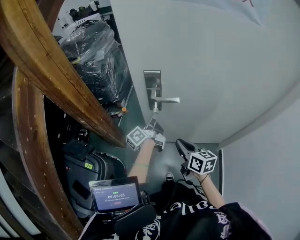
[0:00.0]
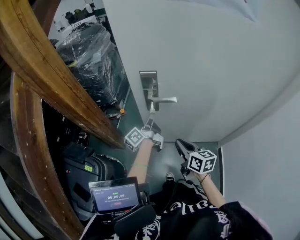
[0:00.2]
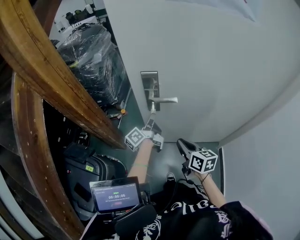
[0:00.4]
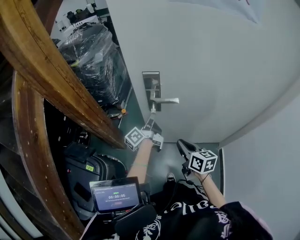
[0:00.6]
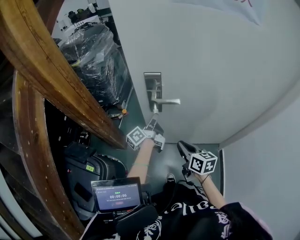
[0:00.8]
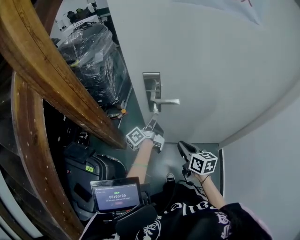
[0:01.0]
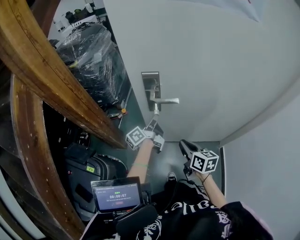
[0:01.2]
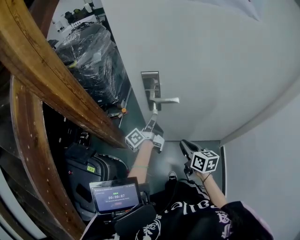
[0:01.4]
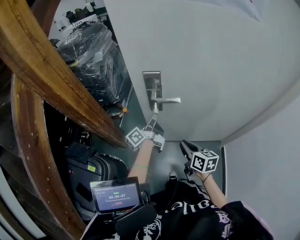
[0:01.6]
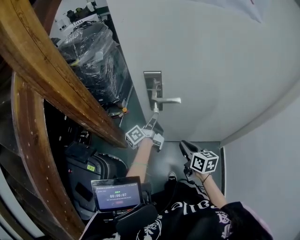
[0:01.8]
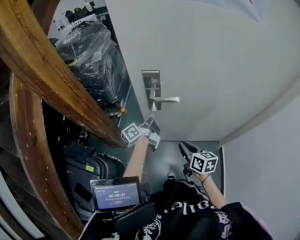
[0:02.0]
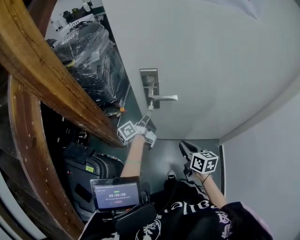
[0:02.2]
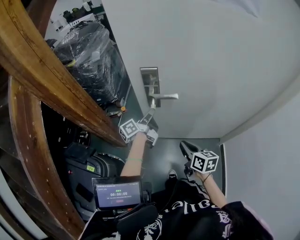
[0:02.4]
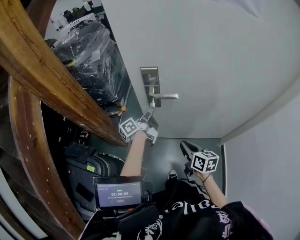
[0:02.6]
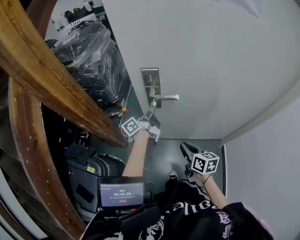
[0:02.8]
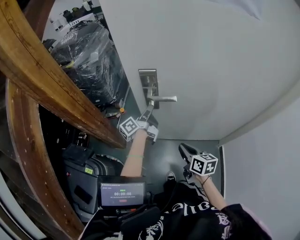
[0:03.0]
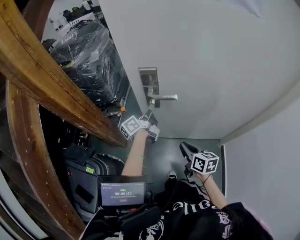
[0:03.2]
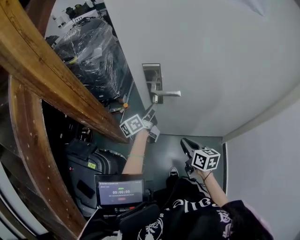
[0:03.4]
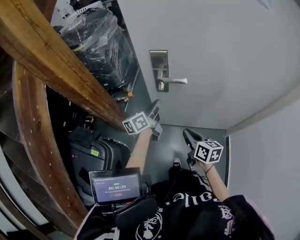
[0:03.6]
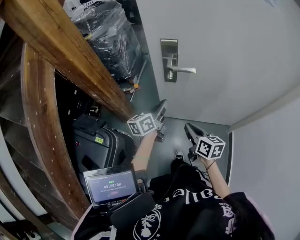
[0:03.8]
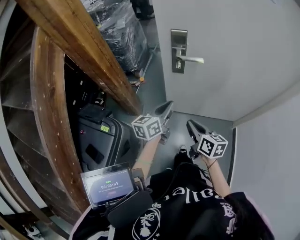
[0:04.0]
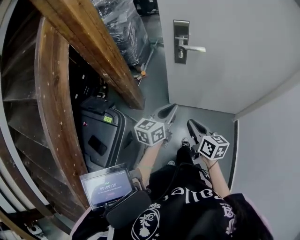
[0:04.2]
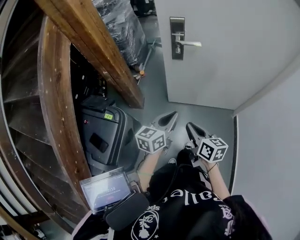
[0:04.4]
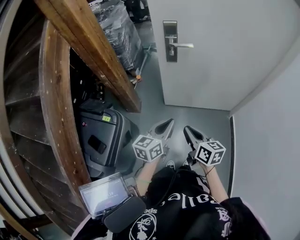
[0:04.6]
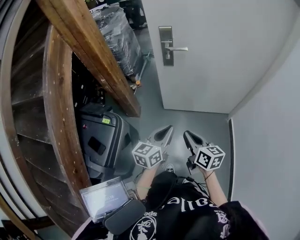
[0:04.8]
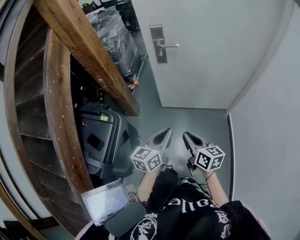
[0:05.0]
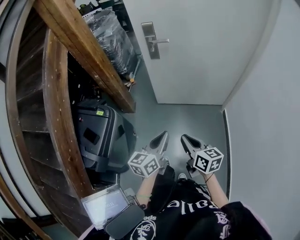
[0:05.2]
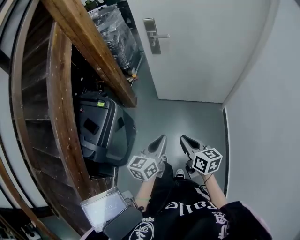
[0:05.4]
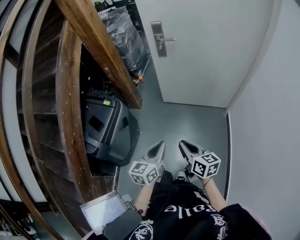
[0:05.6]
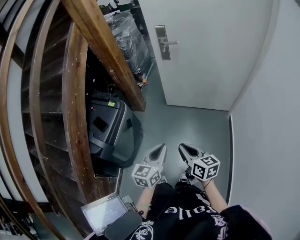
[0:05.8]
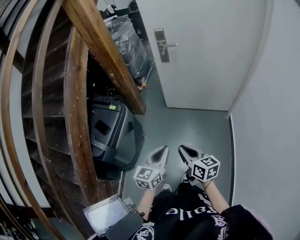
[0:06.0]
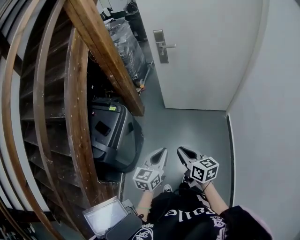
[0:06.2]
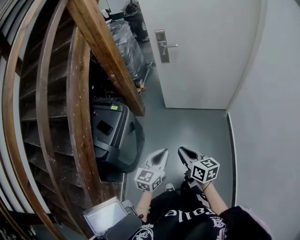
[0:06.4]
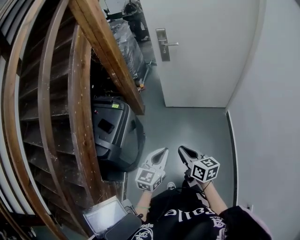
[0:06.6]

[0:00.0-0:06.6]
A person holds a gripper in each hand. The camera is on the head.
0:00.0 to 0:01.6: The grippers make only small movements.
0:01.6 to 0:03.2: The left gripper shifts approximately 5 cm forward.
0:03.2 to 0:05.0: The right gripper goes about 35 cm backward, while the left gripper goes roughly 50 cm backward, and rotates around the line of its fingers by roughly 40 degrees, clockwise from behind.
0:05.0 to 0:06.6: The two grippers go some 25 cm backward. The left gripper turns by approximately 20 degrees.

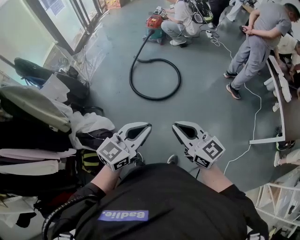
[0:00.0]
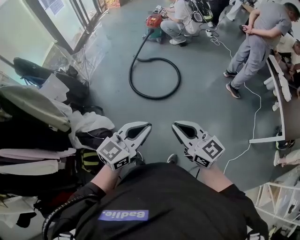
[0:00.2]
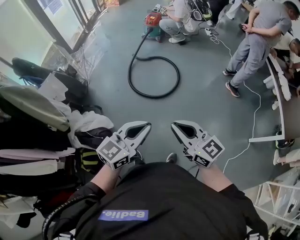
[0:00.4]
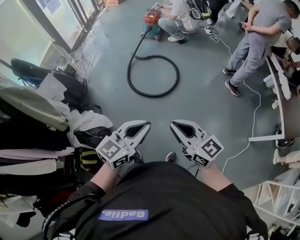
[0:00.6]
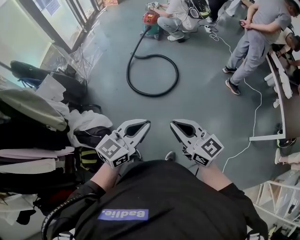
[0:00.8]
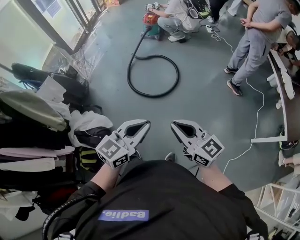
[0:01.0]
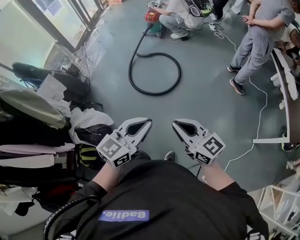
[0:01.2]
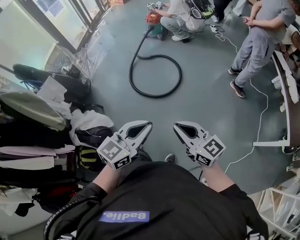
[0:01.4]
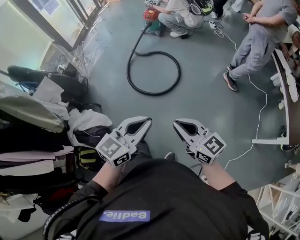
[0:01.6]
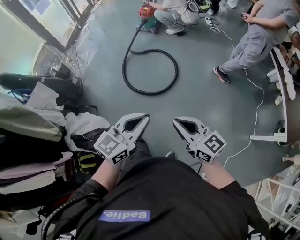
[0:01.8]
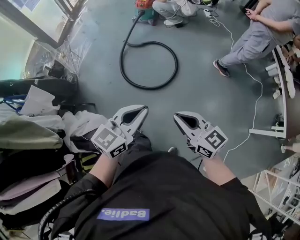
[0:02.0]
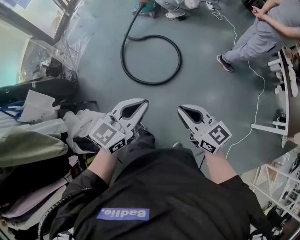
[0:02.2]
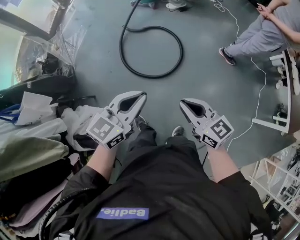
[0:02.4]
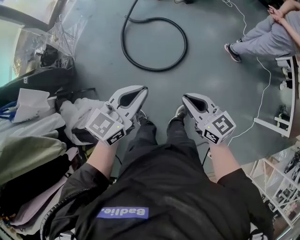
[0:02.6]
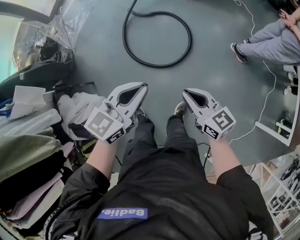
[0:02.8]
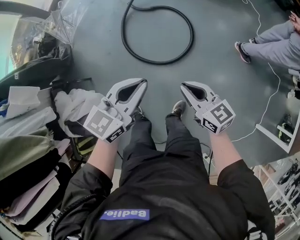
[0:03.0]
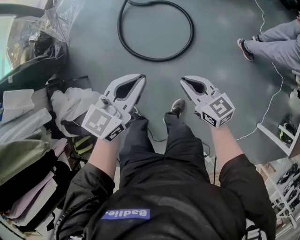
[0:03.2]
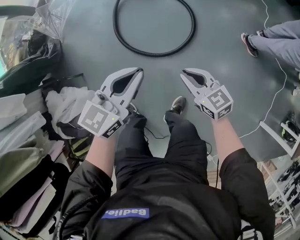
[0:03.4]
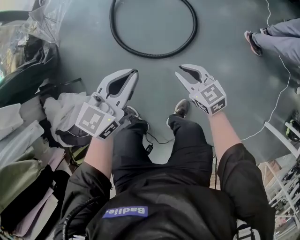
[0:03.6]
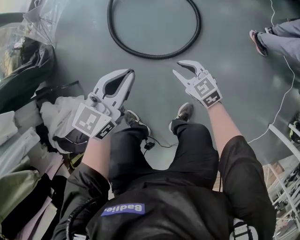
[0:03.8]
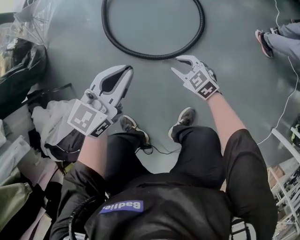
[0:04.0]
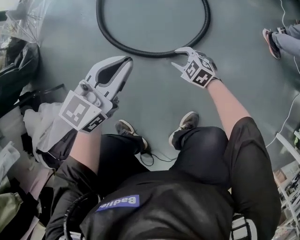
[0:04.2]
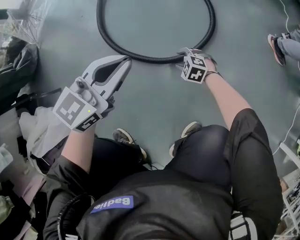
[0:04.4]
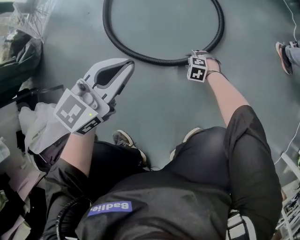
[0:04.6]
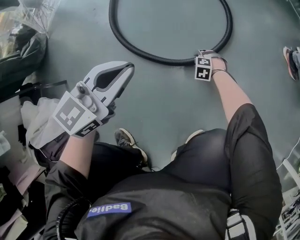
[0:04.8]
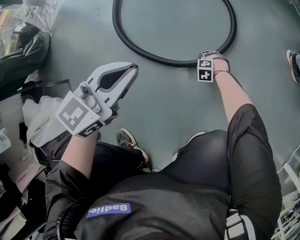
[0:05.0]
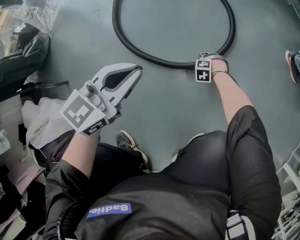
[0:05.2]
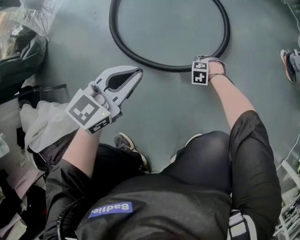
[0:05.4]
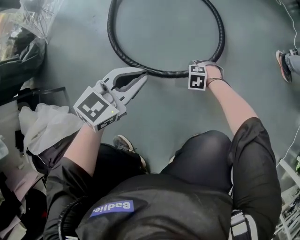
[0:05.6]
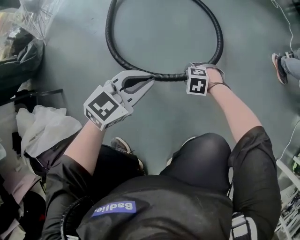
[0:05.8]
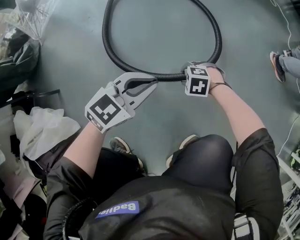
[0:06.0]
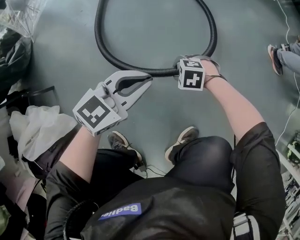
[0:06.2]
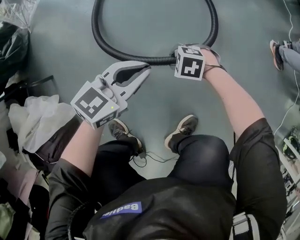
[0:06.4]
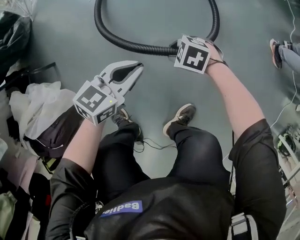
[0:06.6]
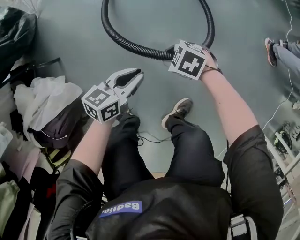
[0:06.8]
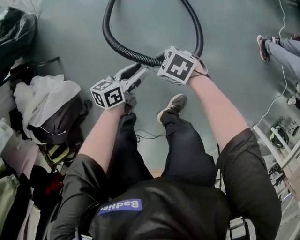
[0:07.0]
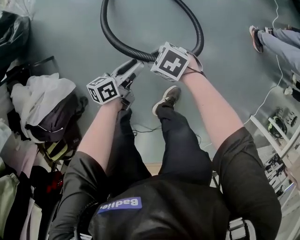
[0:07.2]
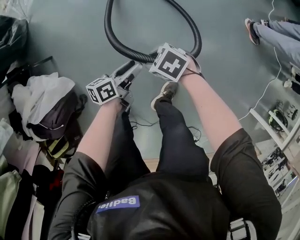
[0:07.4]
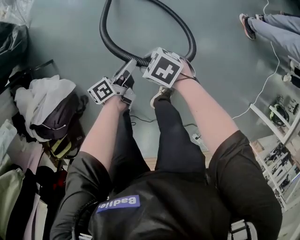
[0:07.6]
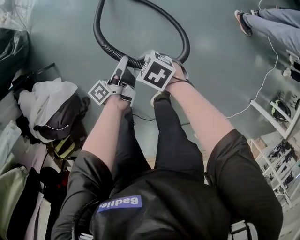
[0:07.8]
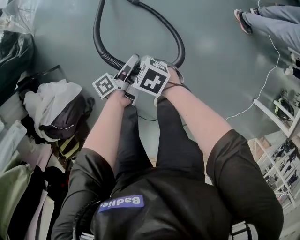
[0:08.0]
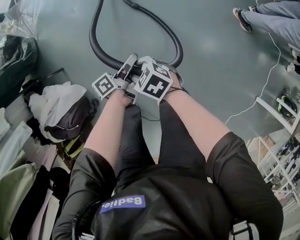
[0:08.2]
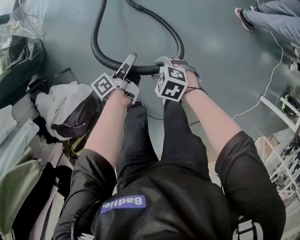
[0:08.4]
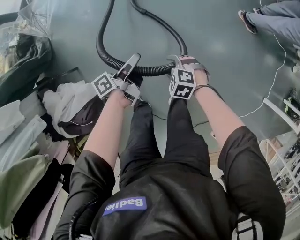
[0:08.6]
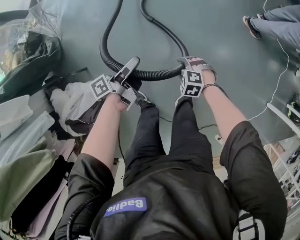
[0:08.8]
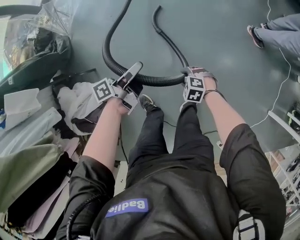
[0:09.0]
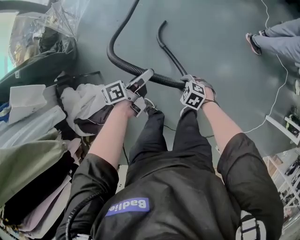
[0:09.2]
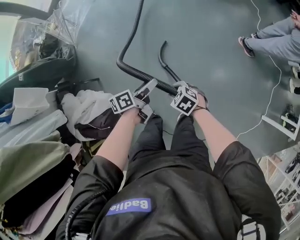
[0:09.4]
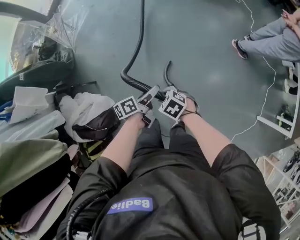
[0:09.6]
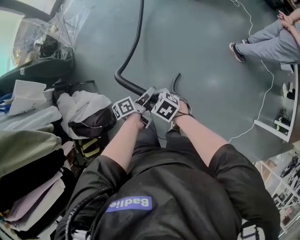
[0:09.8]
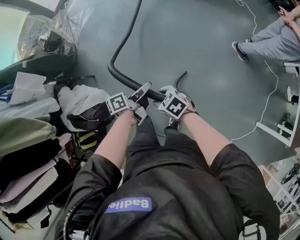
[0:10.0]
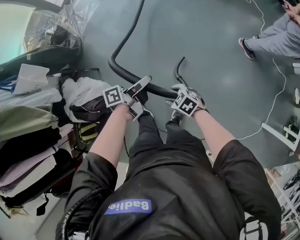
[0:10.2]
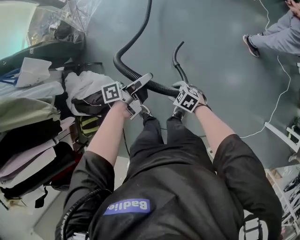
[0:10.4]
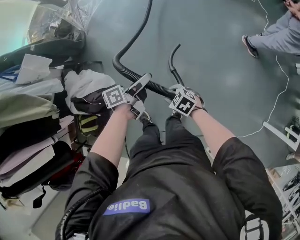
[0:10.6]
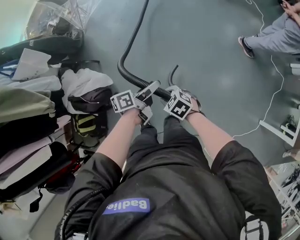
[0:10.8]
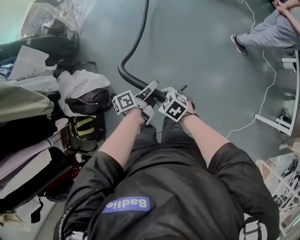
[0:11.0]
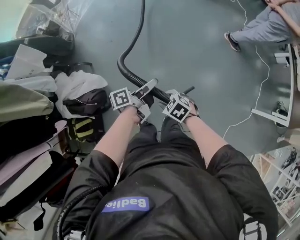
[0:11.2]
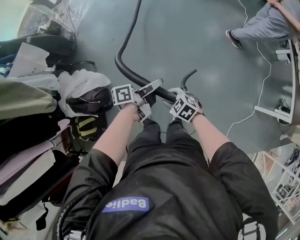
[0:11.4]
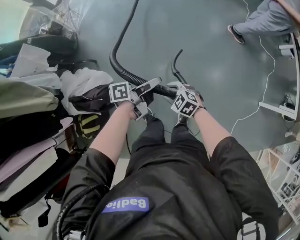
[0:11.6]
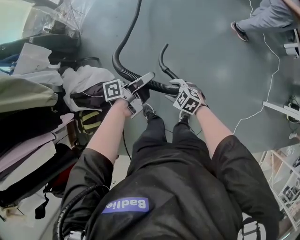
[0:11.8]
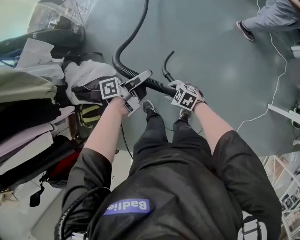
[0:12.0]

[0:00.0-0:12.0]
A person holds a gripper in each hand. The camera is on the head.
0:00.0 to 0:01.6: Both grippers travel together to the right and forward, roughly 10 cm.
0:01.6 to 0:03.0: The two grippers go approximately 40 cm forward and downward.
0:03.0 to 0:04.4: The left gripper moves downward, about 50 cm. Meanwhile the right gripper heads downward, covering some 70 cm, points its fingers roughly 40 degrees further downward, and opens.
0:04.4 to 0:06.0: The left gripper travels downward by roughly 10 cm; the right gripper moves some 15 cm downward and comes back.
0:06.0 to 0:07.6: The left gripper moves approximately 10 cm, twists some 90 degrees counterclockwise, seen from behind, and opens its fingers. Meanwhile the right gripper shifts approximately 30 cm upward, and turns by roughly 40 degrees.
0:07.6 to 0:09.0: The right gripper shifts approximately 5 cm upward, and changes its angle by approximately 30 degrees, while the left gripper heads upward, covering about 25 cm.
0:09.0 to 0:10.4: The left gripper shifts by approximately 25 cm, and opens, then closes again, while the right gripper moves roughly 20 cm, and changes its angle by approximately 30 degrees.
0:10.4 to 0:12.0: The left gripper ends up approximately 15 cm from where it was, and opens, then closes once more. Meanwhile the right gripper changes place by some 20 cm.

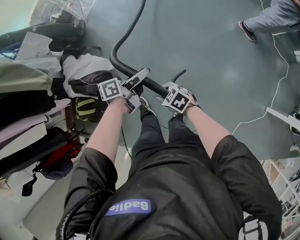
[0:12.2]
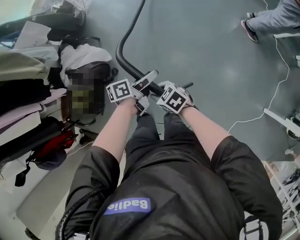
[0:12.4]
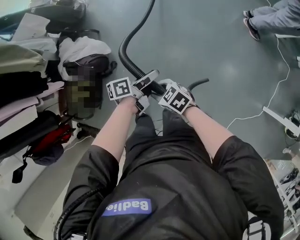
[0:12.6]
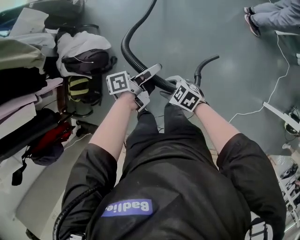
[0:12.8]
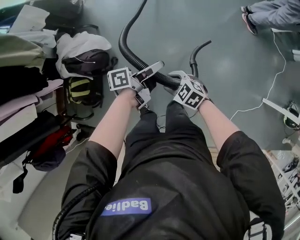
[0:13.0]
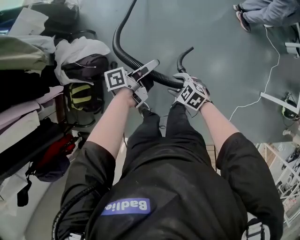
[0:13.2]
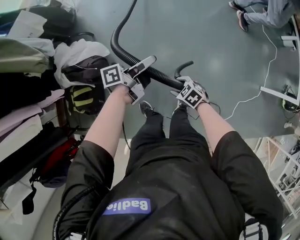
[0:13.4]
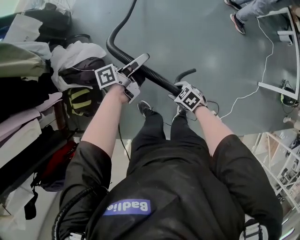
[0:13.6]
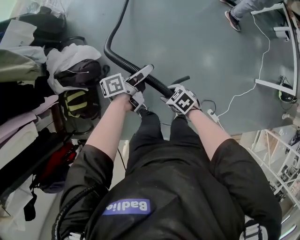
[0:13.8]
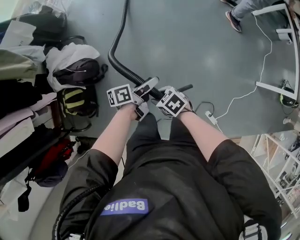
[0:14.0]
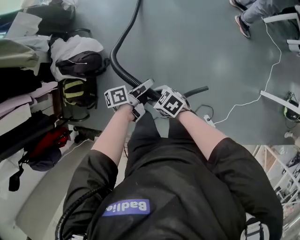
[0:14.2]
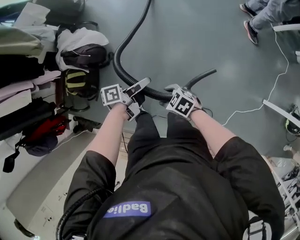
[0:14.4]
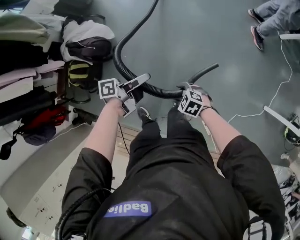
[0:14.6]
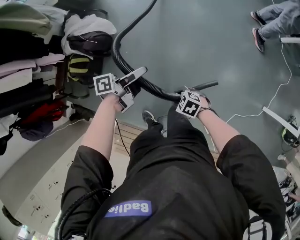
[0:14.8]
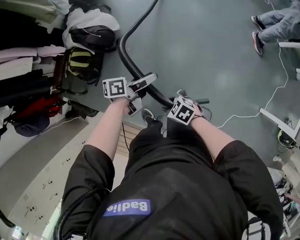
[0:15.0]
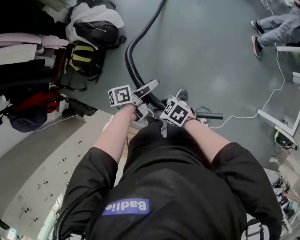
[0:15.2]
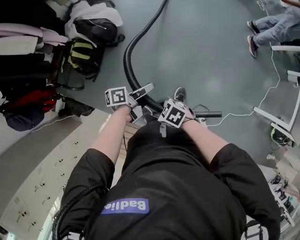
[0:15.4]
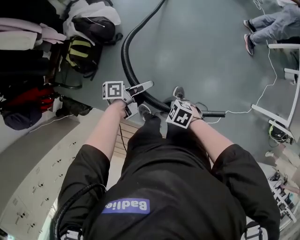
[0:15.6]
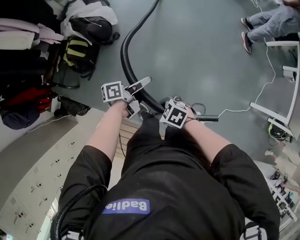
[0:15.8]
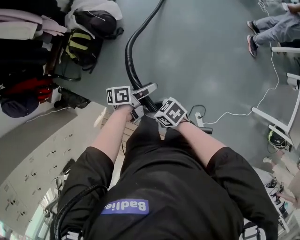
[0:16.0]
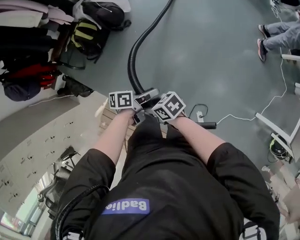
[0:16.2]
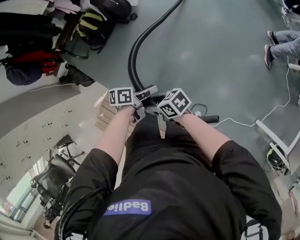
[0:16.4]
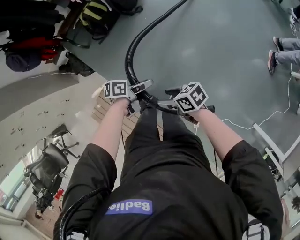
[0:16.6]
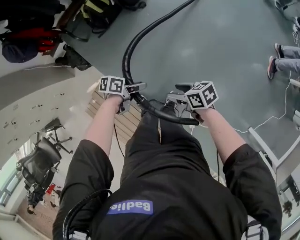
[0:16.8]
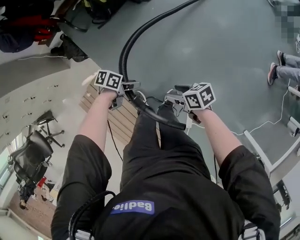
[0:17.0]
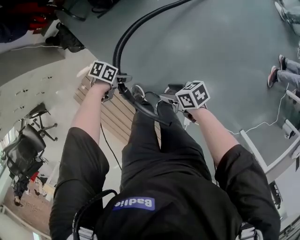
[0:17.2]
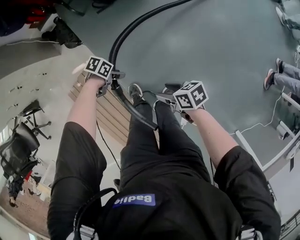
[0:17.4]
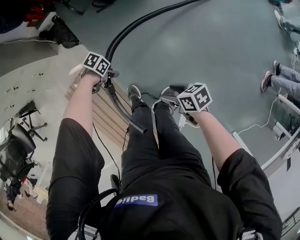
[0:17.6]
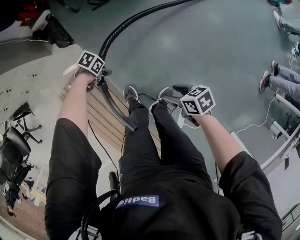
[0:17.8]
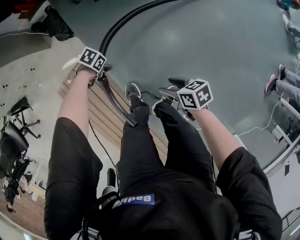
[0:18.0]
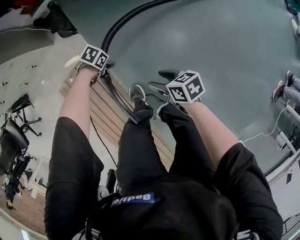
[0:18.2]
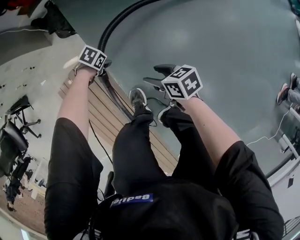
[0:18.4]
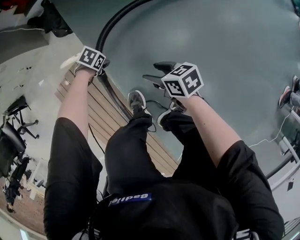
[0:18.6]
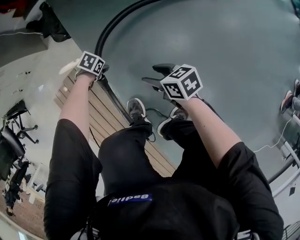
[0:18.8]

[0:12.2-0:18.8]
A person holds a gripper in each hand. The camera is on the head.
0:12.2 to 0:13.8: The left gripper moves up and down over roughly 5 cm, changing direction 2 times. The right gripper ends up some 15 cm from where it was, and turns by about 20 degrees.
0:13.8 to 0:15.4: The left gripper swings up and down, roughly 5 cm each way, with 2 reversals, and closes up, while the right gripper changes place by approximately 25 cm, and swivels about 40 degrees.
0:15.4 to 0:17.2: The right gripper changes place by some 15 cm, swivels about 20 degrees, and opens its fingers; the left gripper ends up some 35 cm from where it was, and tilts its fingers approximately 30 degrees downward.
0:17.2 to 0:18.8: The two grippers go roughly 40 cm downward. The left gripper swivels about 30 degrees.
